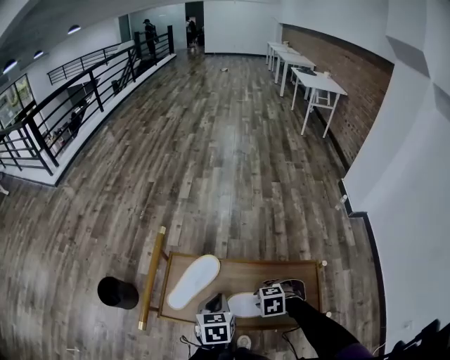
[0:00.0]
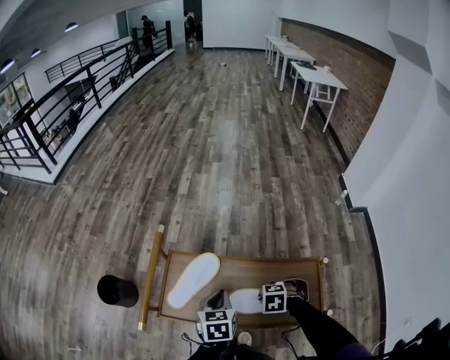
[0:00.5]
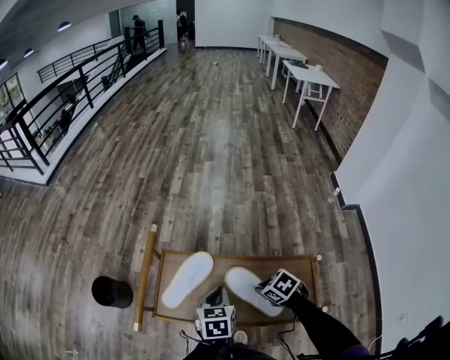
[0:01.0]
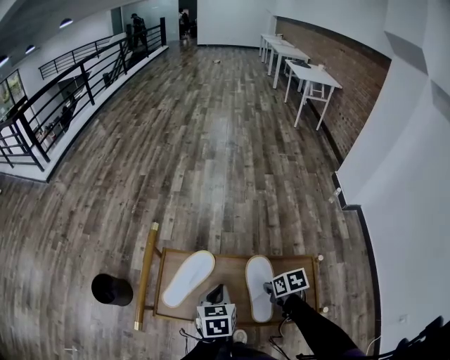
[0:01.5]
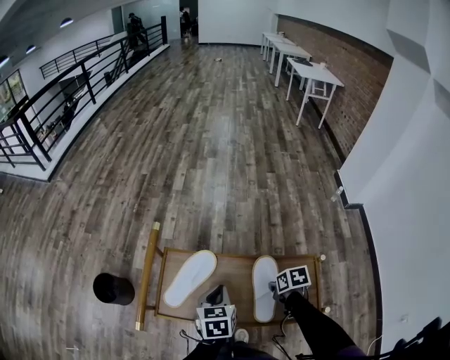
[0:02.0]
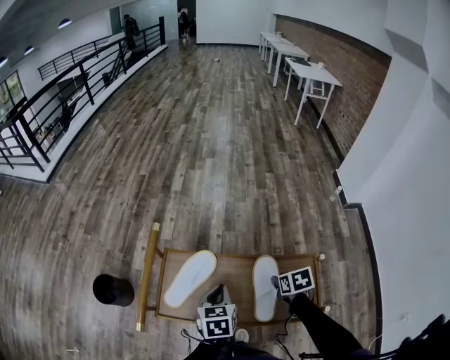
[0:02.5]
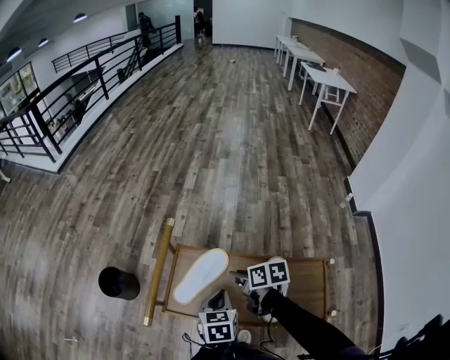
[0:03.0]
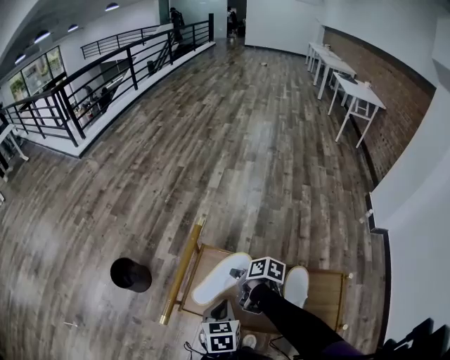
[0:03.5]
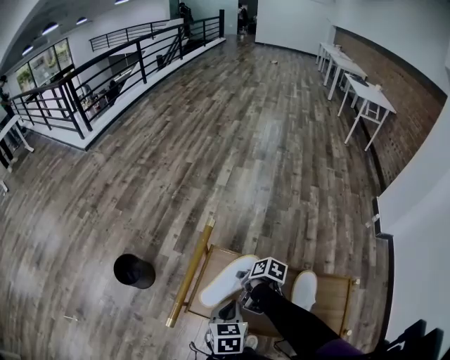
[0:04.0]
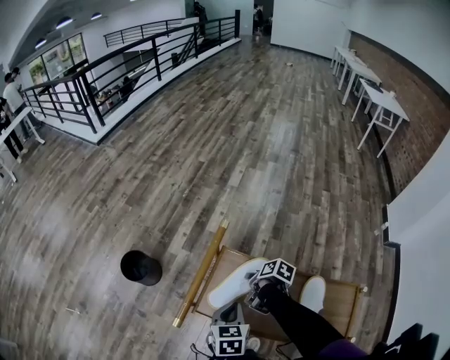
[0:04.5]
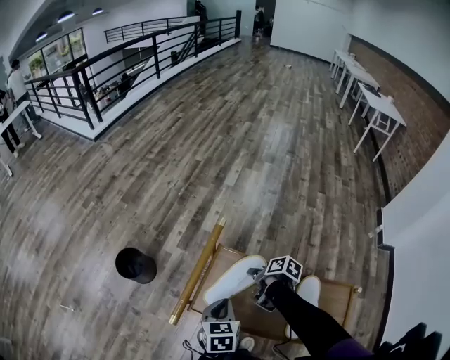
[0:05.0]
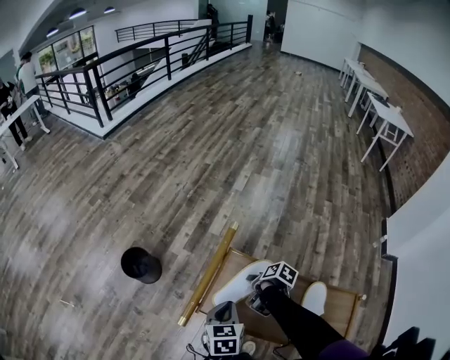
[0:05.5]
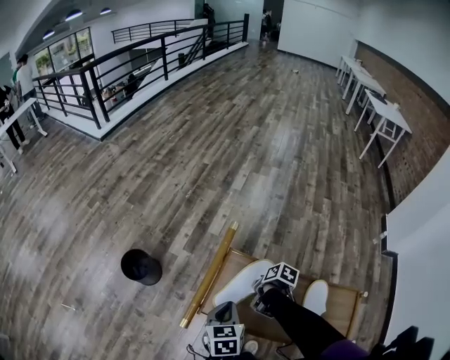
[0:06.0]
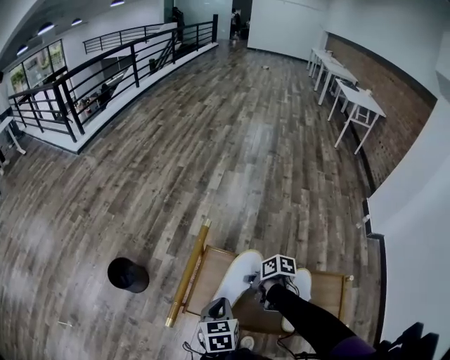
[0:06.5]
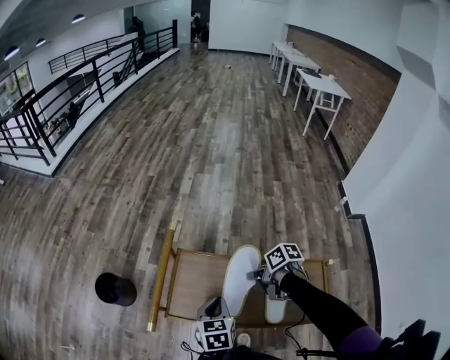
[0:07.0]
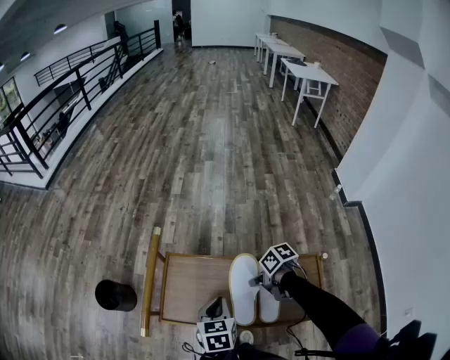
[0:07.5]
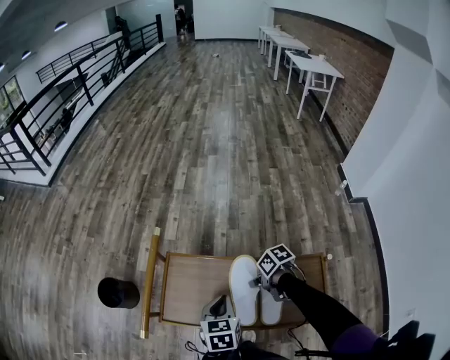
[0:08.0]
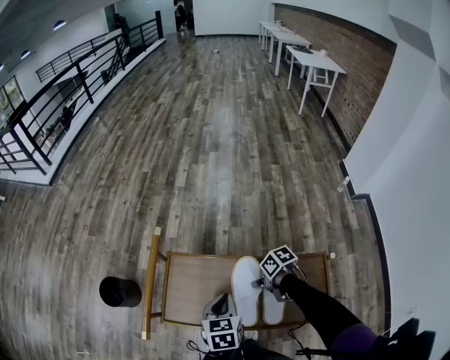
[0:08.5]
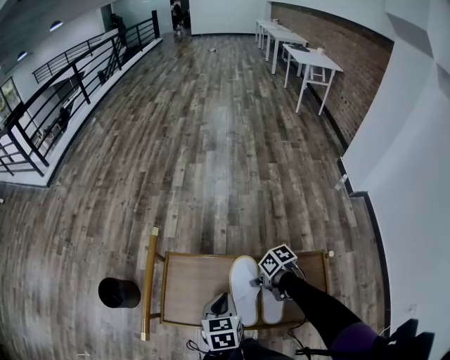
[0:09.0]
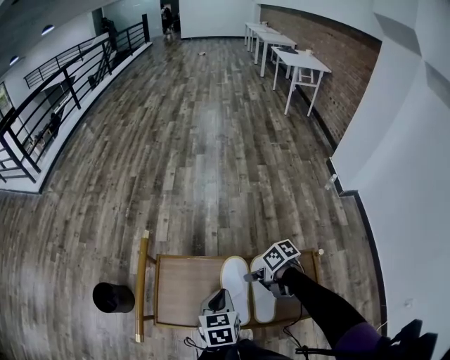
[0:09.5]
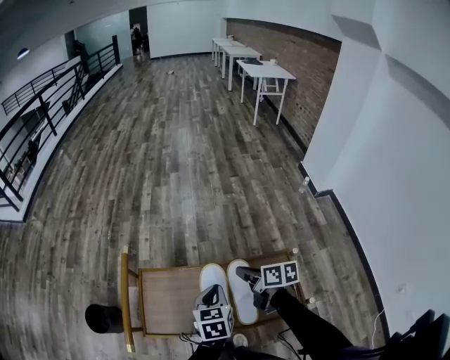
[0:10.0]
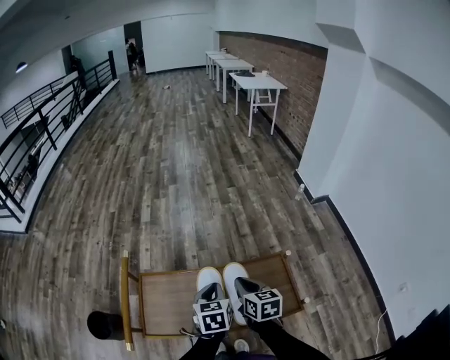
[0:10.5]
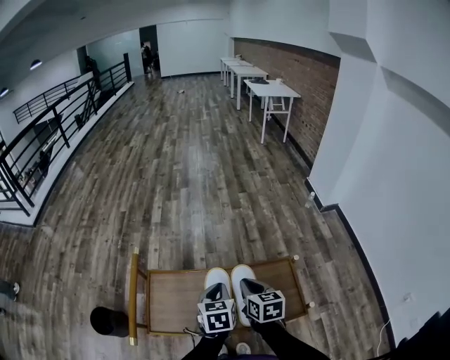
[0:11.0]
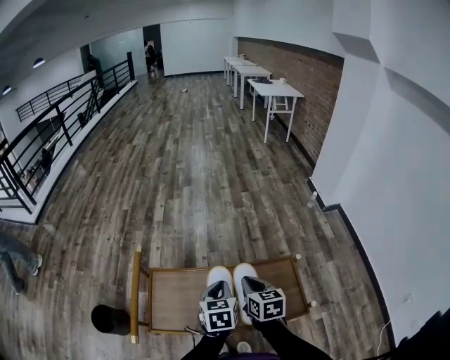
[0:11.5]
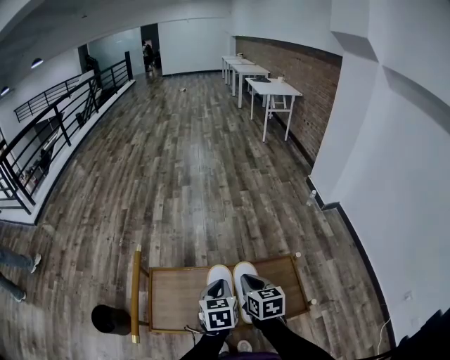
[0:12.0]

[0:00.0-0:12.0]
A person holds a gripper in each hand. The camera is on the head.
0:00.0 to 0:02.0: The right gripper shifts by approximately 10 cm, rotates around the line of its fingers by about 90 degrees, clockwise from behind, and closes.
0:02.0 to 0:04.0: The left gripper shifts roughly 10 cm to the left; the right gripper travels to the left and forward by some 25 cm, swivels about 20 degrees, and opens up.
0:04.0 to 0:06.0: The right gripper closes. The left gripper is displaced to the left by roughly 5 cm.
0:06.0 to 0:08.0: The right gripper shifts approximately 15 cm backward and to the right, and changes its angle by approximately 30 degrees; the left gripper travels to the right and backward by approximately 15 cm.
0:08.0 to 0:10.0: The right gripper goes approximately 10 cm upward, and changes its angle by approximately 50 degrees. The left gripper changes place by some 10 cm.
0:10.0 to 0:12.0: The right gripper shifts by approximately 5 cm, and swivels about 30 degrees.

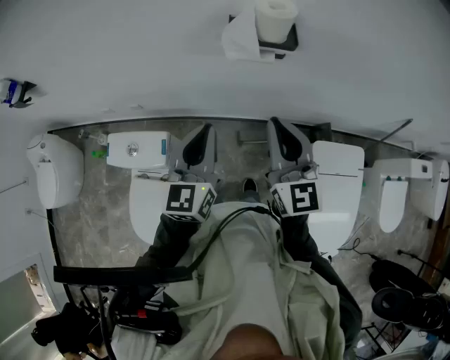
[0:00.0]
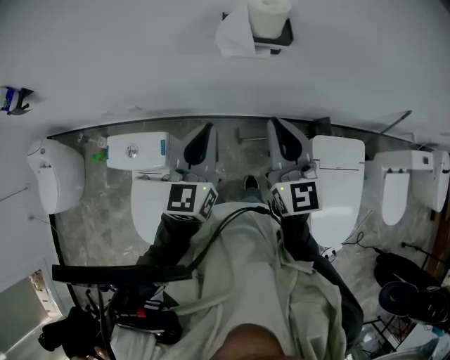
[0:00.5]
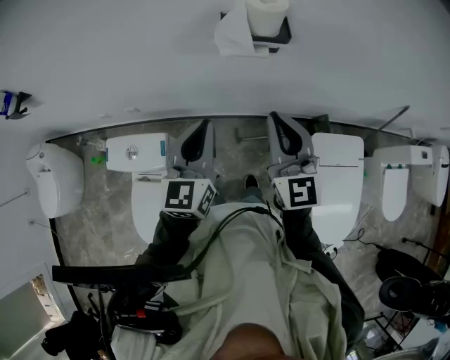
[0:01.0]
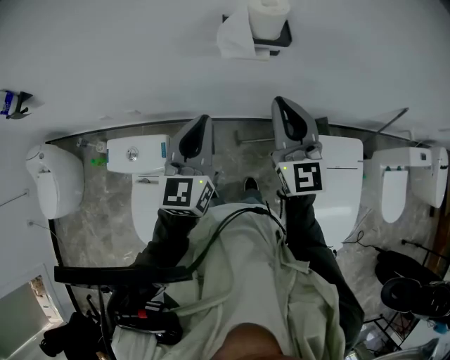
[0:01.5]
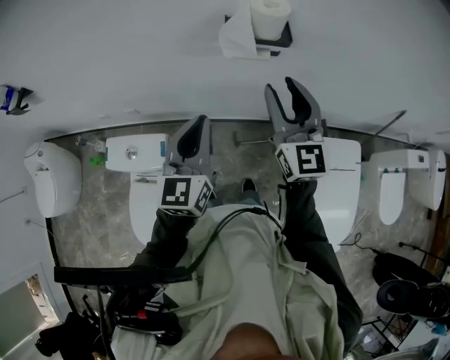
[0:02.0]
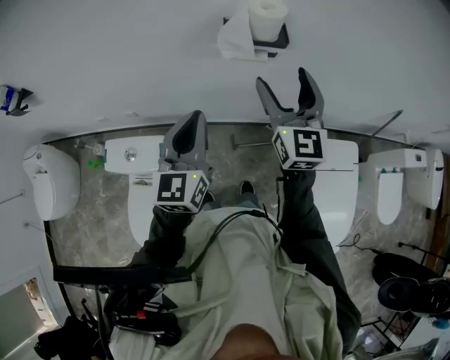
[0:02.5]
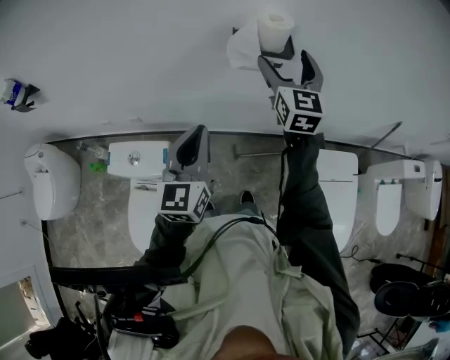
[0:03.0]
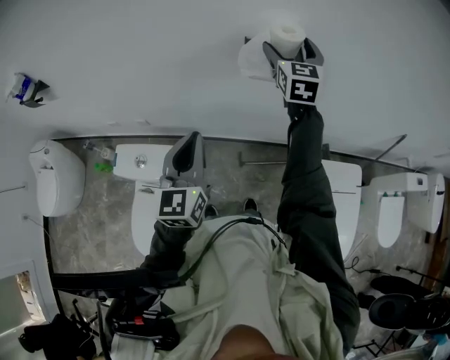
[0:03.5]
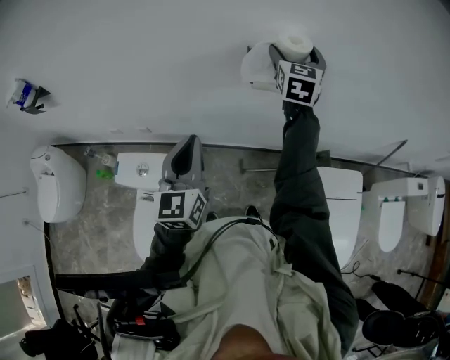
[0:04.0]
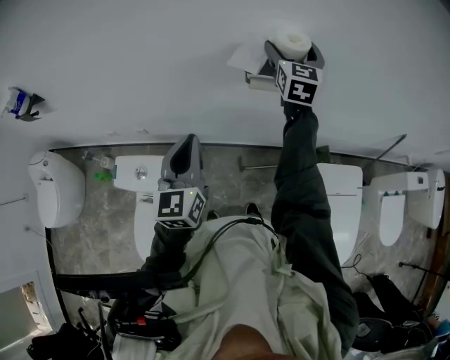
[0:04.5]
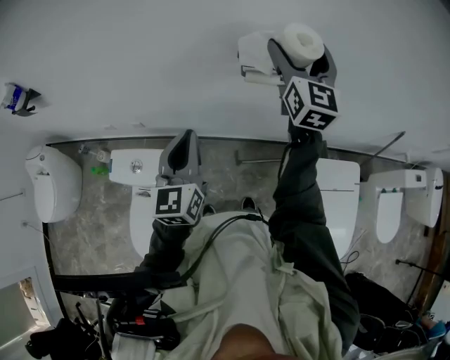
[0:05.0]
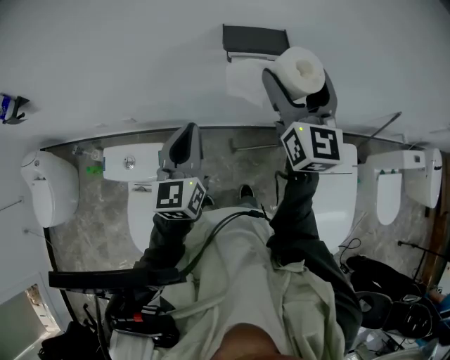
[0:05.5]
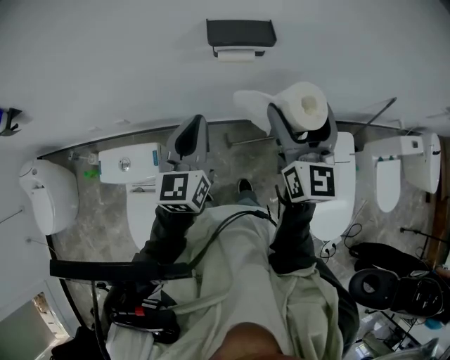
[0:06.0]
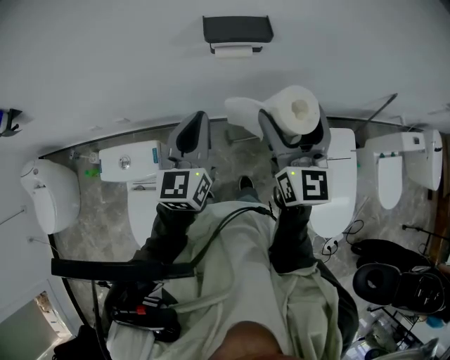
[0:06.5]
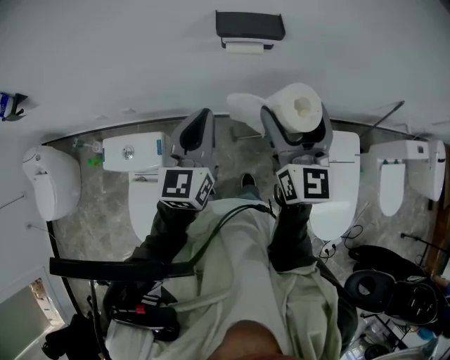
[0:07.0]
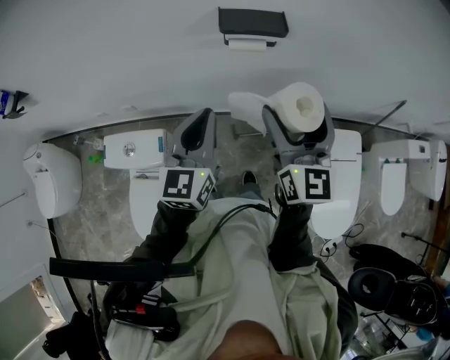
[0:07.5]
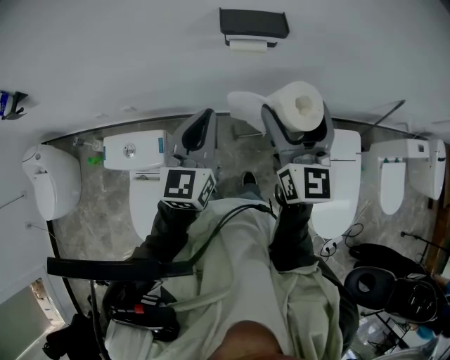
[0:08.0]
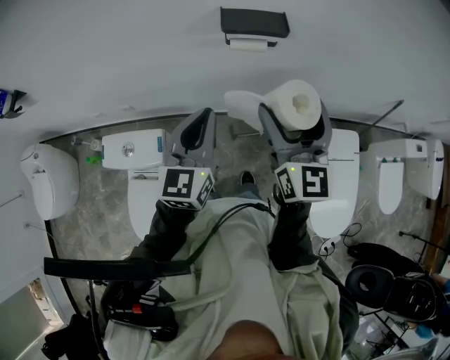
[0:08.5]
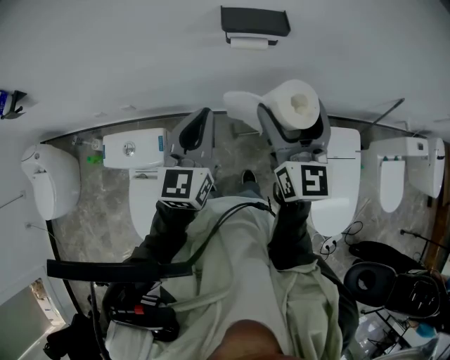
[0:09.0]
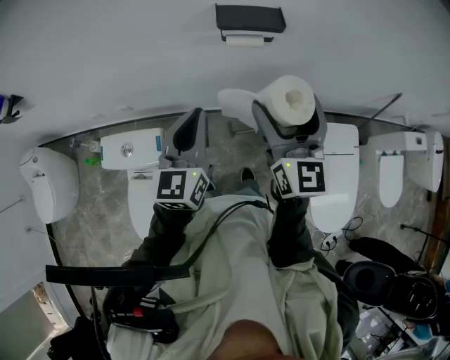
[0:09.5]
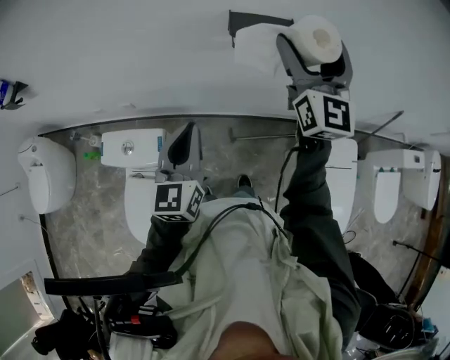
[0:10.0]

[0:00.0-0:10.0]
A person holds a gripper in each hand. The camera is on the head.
0:00.0 to 0:02.0: The right gripper is displaced forward by some 5 cm.
0:02.0 to 0:04.0: The right gripper is displaced forward by about 20 cm, swivels roughly 20 degrees, and opens, while the left gripper moves to the left, about 5 cm.
0:04.0 to 0:06.0: The right gripper is displaced backward by roughly 25 cm. The left gripper shifts some 10 cm to the right.
0:06.0 to 0:08.0: The grippers move only a little.
0:08.0 to 0:10.0: The left gripper moves roughly 5 cm, while the right gripper is displaced forward and upward by approximately 15 cm.

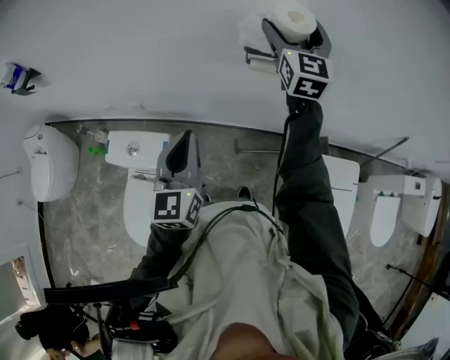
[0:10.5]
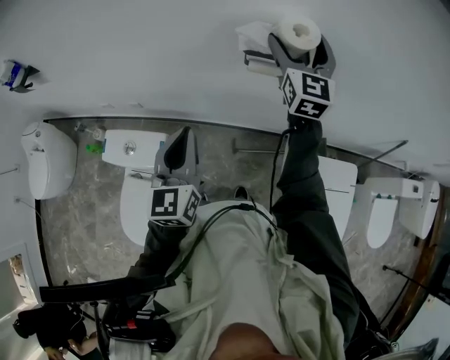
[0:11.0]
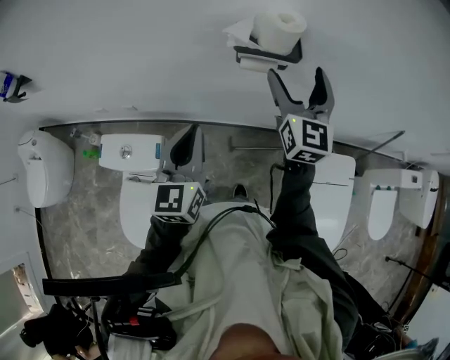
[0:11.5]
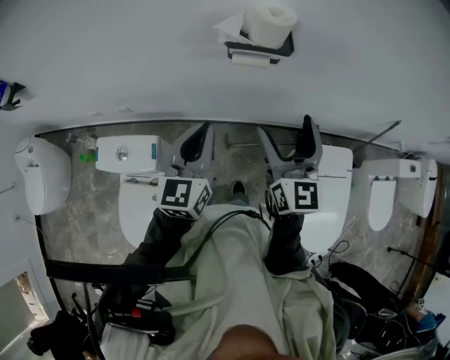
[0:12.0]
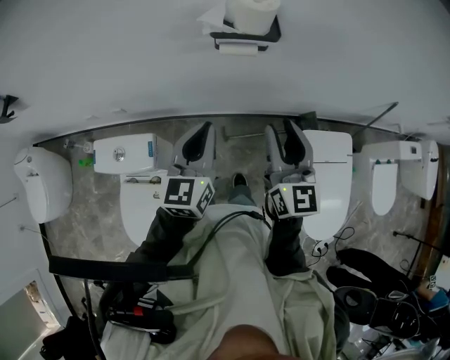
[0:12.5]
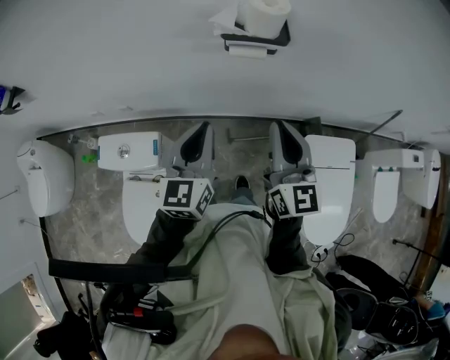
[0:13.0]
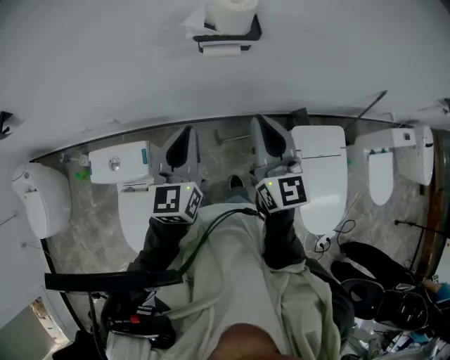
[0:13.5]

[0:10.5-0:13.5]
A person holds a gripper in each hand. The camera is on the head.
0:10.5 to 0:12.0: The right gripper is displaced backward by roughly 25 cm. The left gripper moves to the right, roughly 5 cm.
0:12.0 to 0:13.5: The right gripper closes its fingers.

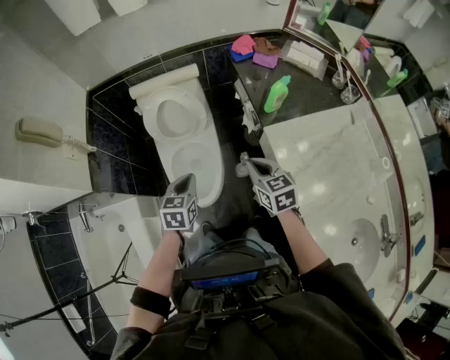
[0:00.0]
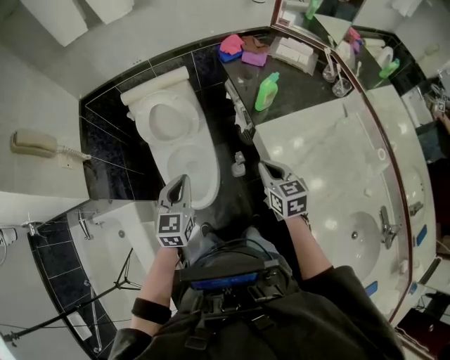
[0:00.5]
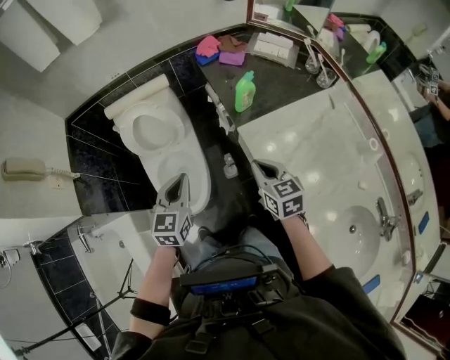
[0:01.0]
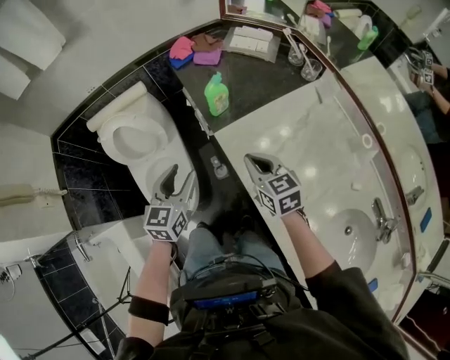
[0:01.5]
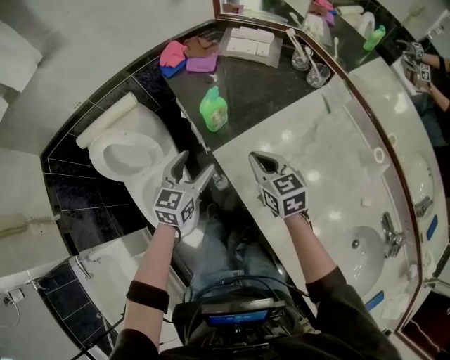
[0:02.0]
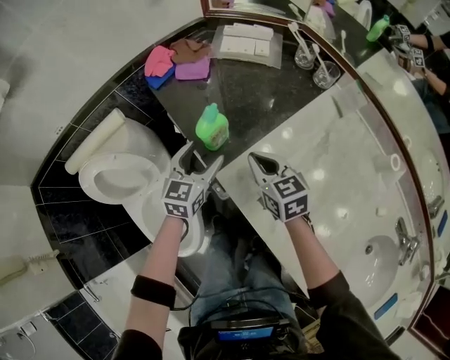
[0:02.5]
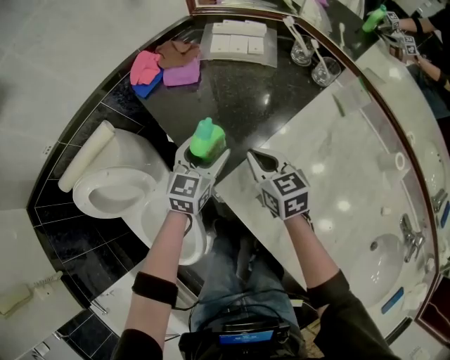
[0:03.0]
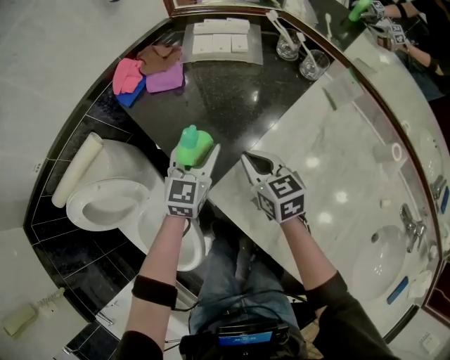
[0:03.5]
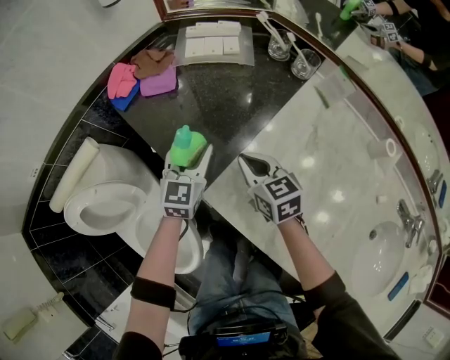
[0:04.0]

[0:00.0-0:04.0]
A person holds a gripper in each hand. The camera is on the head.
0:00.0 to 0:02.0: The grippers both shift to the right and forward by about 30 cm. The left gripper turns by roughly 30 degrees, and opens up.
0:02.0 to 0:04.0: Both grippers travel together forward and downward, approximately 20 cm. The left gripper closes its fingers.
